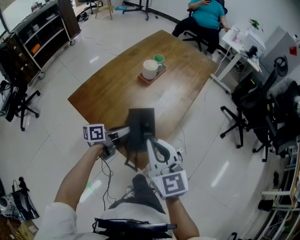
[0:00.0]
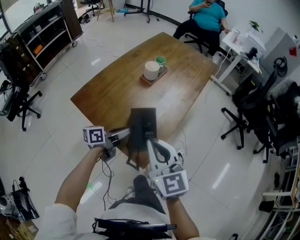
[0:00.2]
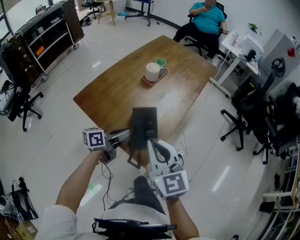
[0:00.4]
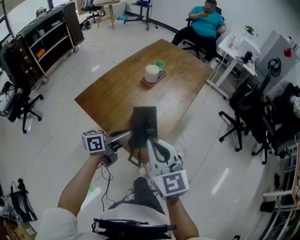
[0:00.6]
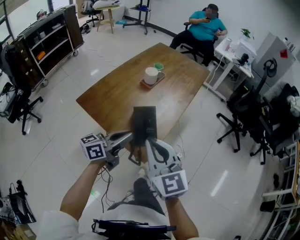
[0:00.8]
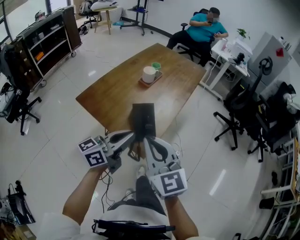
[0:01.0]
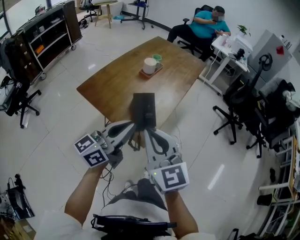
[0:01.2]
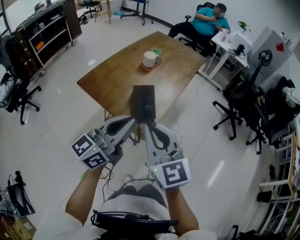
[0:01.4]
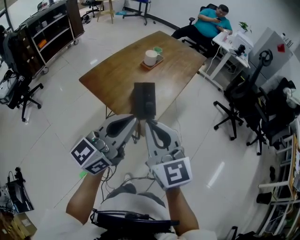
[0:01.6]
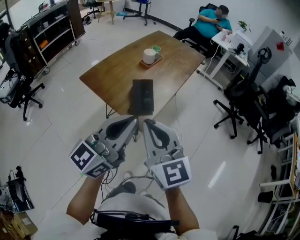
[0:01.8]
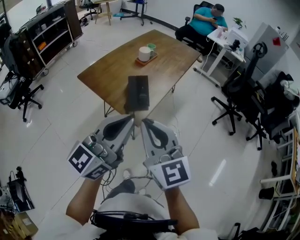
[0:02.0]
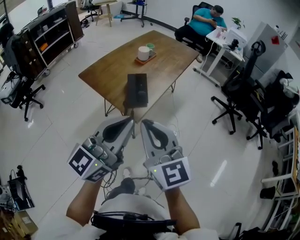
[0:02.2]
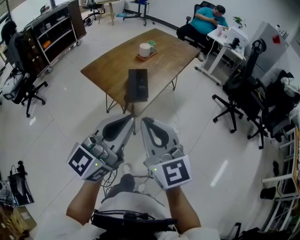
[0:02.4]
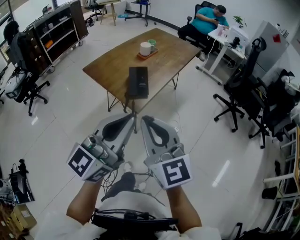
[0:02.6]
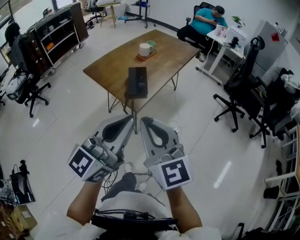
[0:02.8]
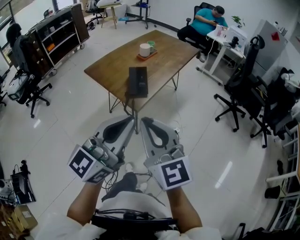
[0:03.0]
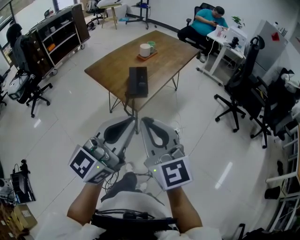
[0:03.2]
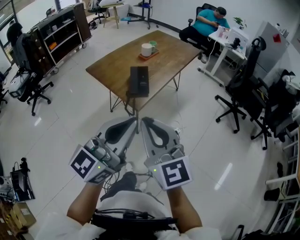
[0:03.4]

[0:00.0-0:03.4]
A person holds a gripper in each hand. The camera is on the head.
0:00.0 to 0:01.6: The left gripper is displaced upward and backward by approximately 40 cm, rotates around the line of its fingers by about 40 degrees, clockwise from behind, and closes up. The right gripper is displaced backward and upward by approximately 20 cm.
0:01.6 to 0:03.4: The two grippers go some 20 cm backward and to the right.

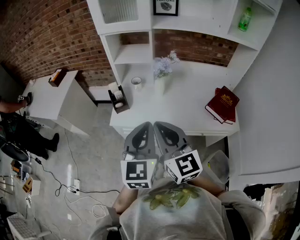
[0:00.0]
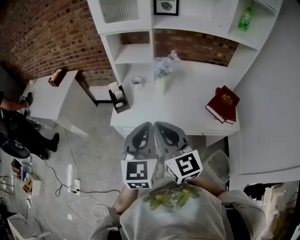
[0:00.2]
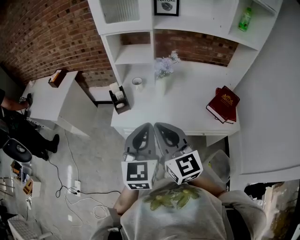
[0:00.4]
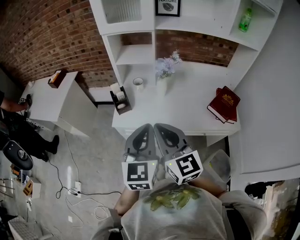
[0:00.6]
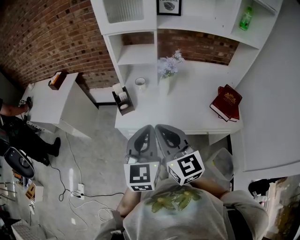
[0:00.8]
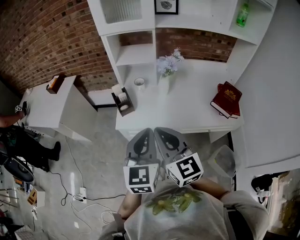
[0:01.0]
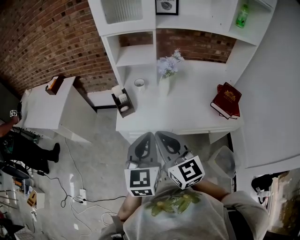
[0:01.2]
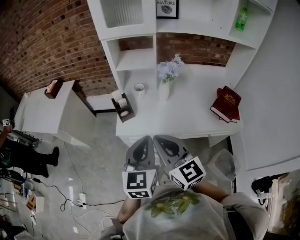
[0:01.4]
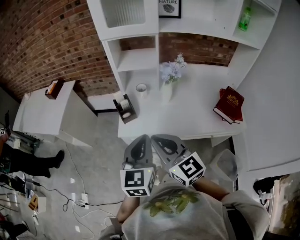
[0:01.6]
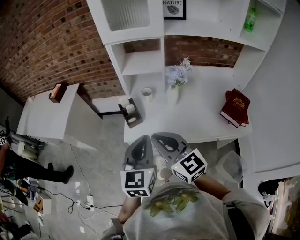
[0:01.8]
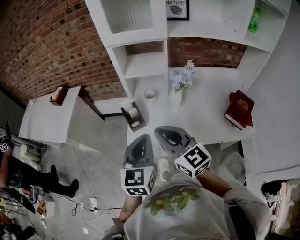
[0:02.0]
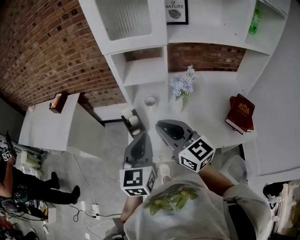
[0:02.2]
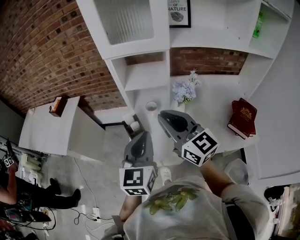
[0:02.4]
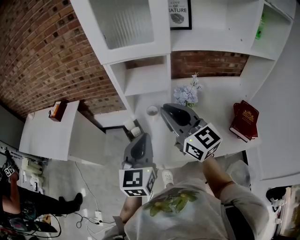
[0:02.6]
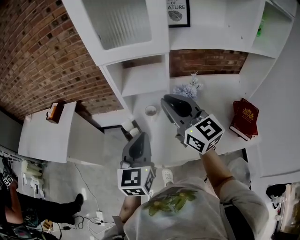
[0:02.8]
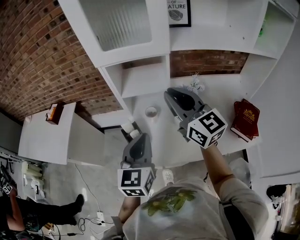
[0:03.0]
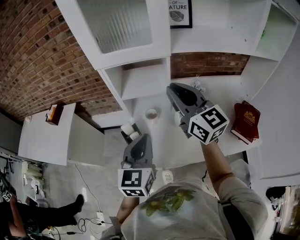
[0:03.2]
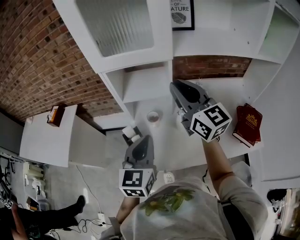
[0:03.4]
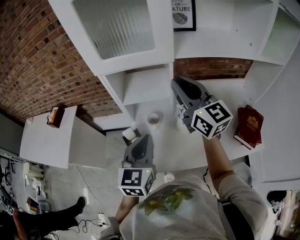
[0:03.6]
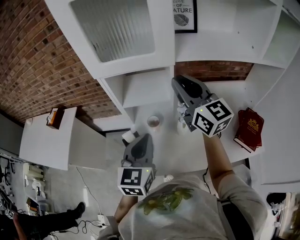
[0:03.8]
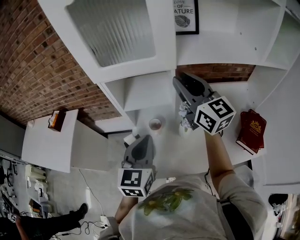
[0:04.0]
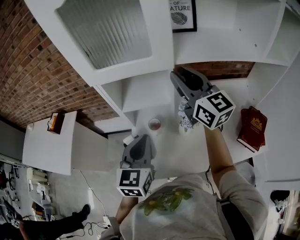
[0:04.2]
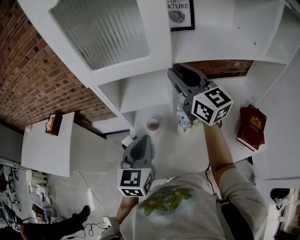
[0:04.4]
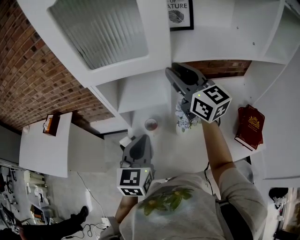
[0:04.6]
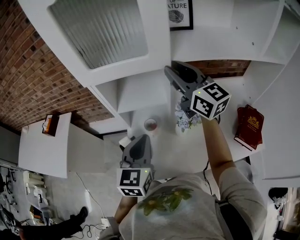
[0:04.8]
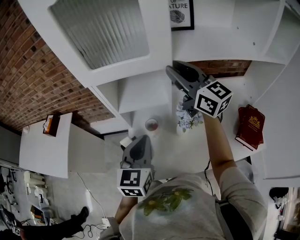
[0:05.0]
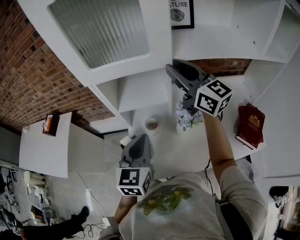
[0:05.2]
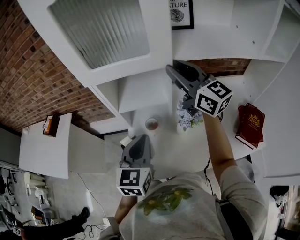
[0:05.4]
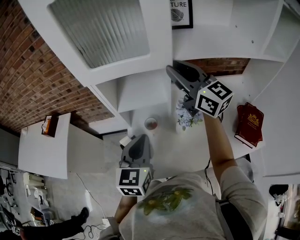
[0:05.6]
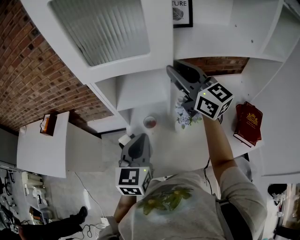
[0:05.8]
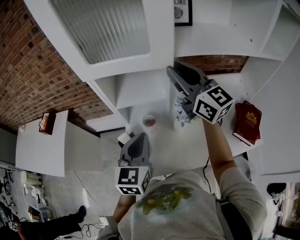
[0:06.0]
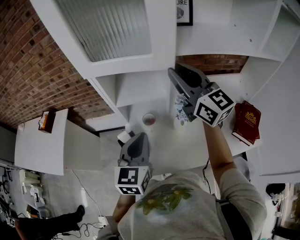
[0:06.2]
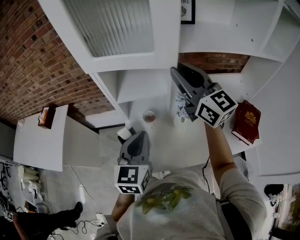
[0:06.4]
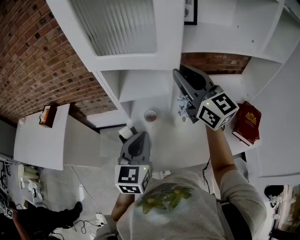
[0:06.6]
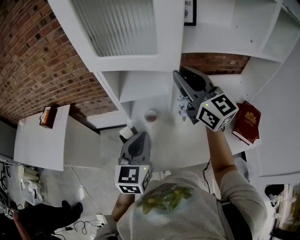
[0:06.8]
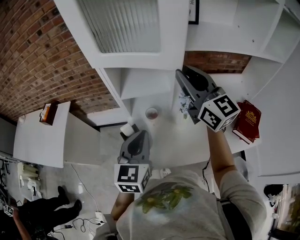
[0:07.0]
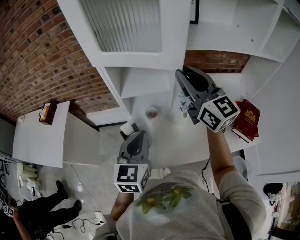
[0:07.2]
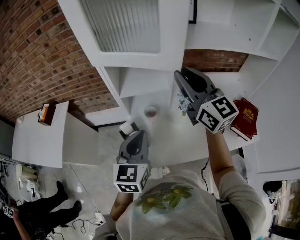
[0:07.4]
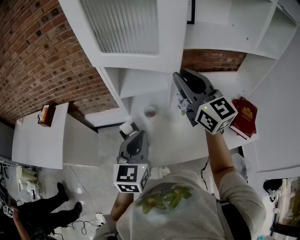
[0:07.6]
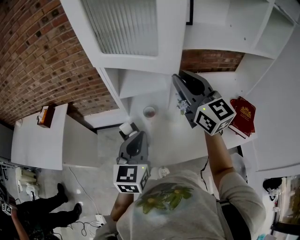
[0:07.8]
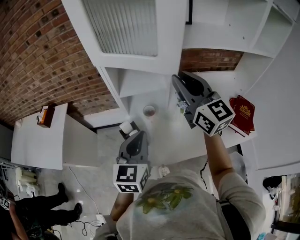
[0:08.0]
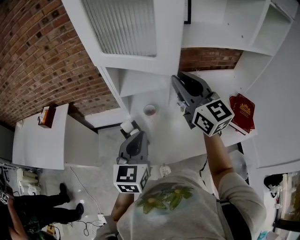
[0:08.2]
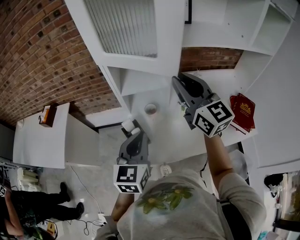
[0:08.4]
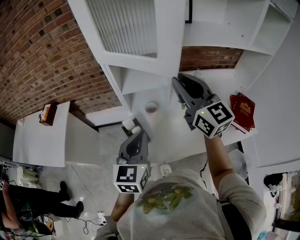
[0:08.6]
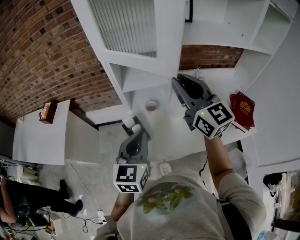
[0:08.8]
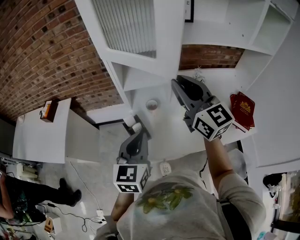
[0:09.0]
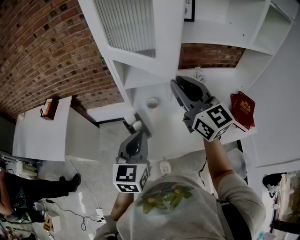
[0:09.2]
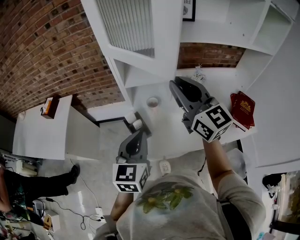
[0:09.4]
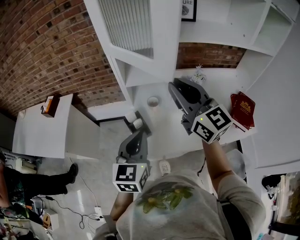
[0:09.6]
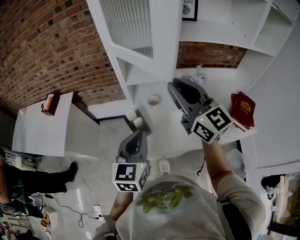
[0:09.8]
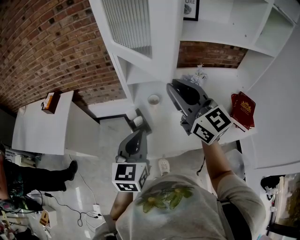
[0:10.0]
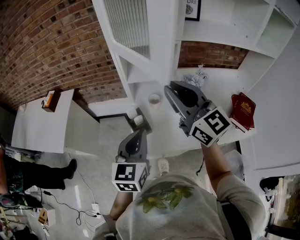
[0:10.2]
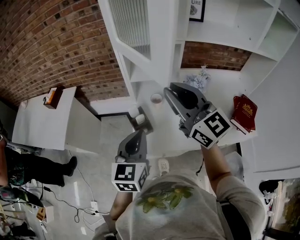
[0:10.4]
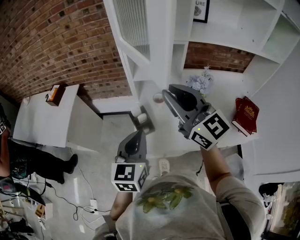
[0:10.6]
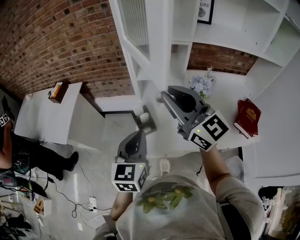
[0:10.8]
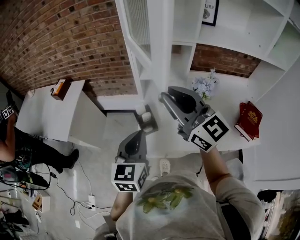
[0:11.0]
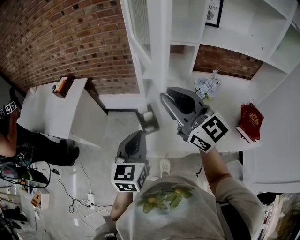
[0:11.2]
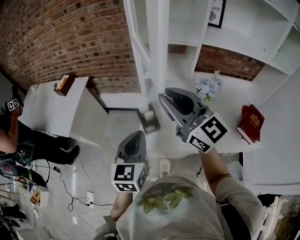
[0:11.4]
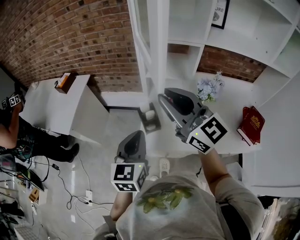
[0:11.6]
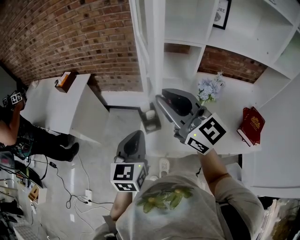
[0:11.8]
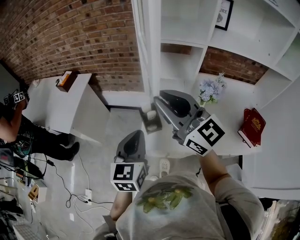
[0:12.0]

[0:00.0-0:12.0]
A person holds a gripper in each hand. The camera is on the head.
0:00.0 to 0:01.6: The two grippers go some 10 cm to the left and downward.
0:01.6 to 0:03.0: Both grippers travel together forward, roughly 25 cm.
0:03.0 to 0:04.4: The right gripper goes about 15 cm forward and to the right; the left gripper heads forward, covering roughly 10 cm.
0:04.4 to 0:06.0: There are only small adjustments of the grippers.
0:06.0 to 0:07.6: The right gripper is displaced backward by about 5 cm; the left gripper changes place by roughly 5 cm.
0:07.6 to 0:09.0: The right gripper is displaced backward by some 5 cm. Meanwhile the left gripper moves approximately 5 cm.
0:09.0 to 0:10.4: The right gripper is displaced to the left and backward by roughly 10 cm.
0:10.4 to 0:12.0: The right gripper heads to the left, covering approximately 10 cm; the left gripper moves to the left, about 5 cm.

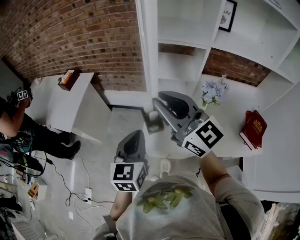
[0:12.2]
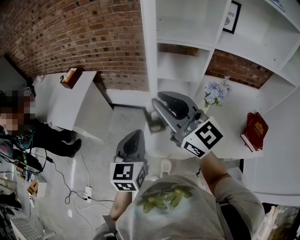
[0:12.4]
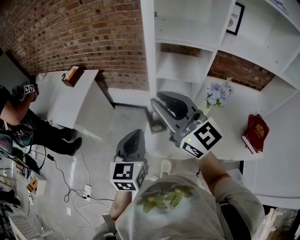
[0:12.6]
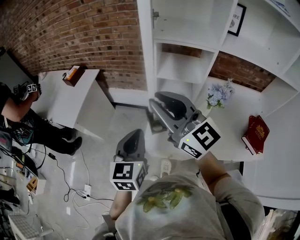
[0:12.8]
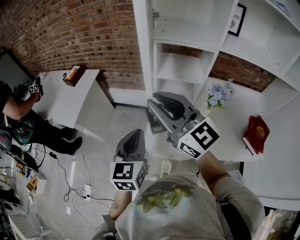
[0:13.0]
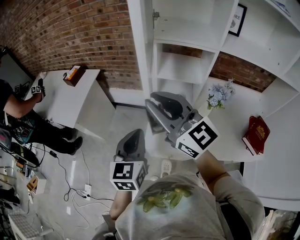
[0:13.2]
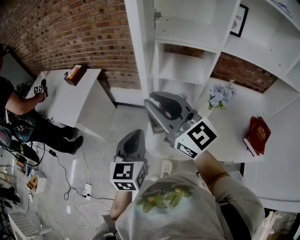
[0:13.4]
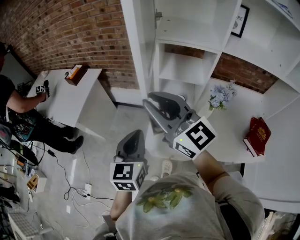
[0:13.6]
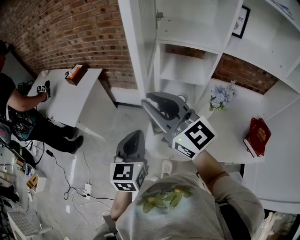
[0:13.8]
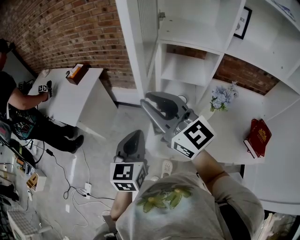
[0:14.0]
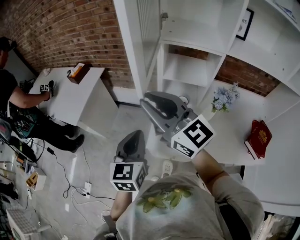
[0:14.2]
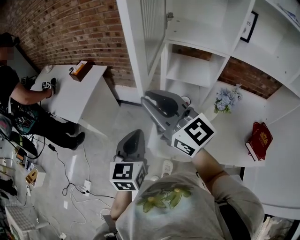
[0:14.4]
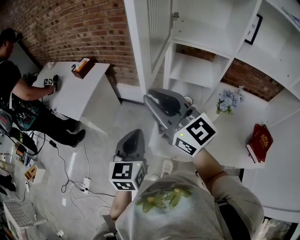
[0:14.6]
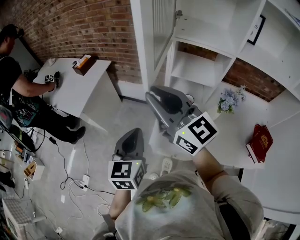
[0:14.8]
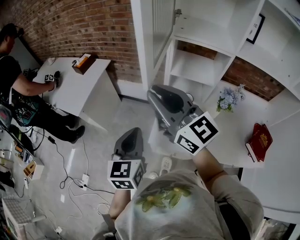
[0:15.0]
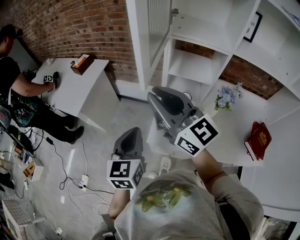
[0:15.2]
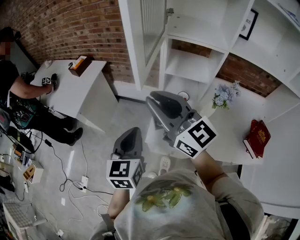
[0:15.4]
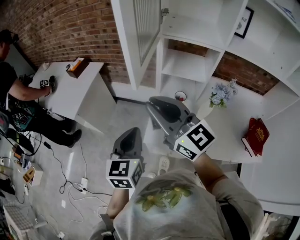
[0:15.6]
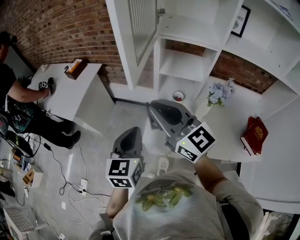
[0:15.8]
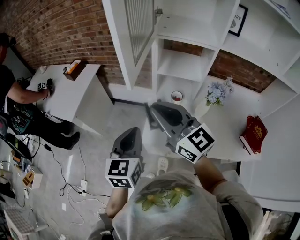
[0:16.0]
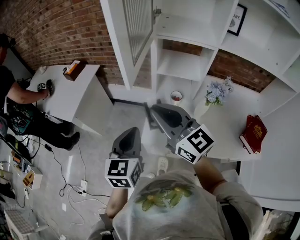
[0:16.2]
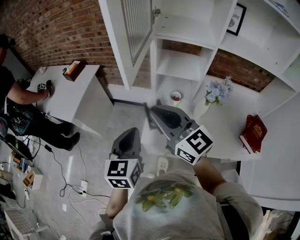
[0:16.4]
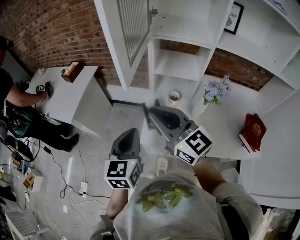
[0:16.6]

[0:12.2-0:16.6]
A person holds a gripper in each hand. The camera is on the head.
0:12.2 to 0:13.6: The right gripper is displaced to the left by approximately 5 cm.
0:13.6 to 0:15.2: The grippers move only a little.
0:15.2 to 0:16.6: The right gripper is displaced downward by roughly 5 cm.

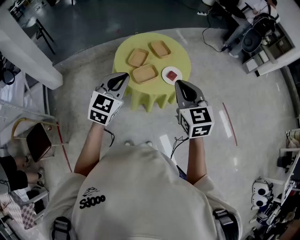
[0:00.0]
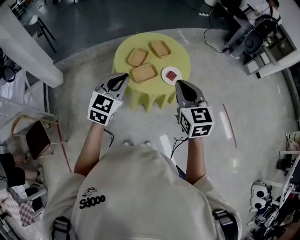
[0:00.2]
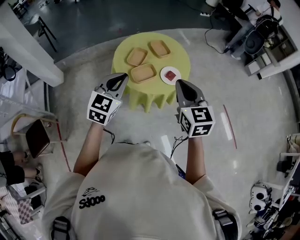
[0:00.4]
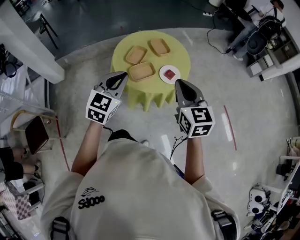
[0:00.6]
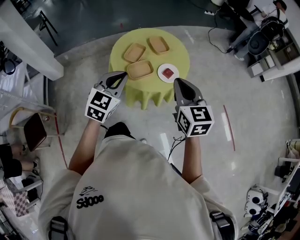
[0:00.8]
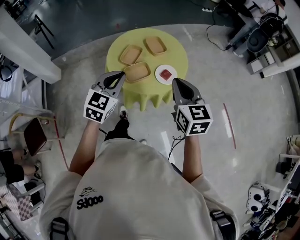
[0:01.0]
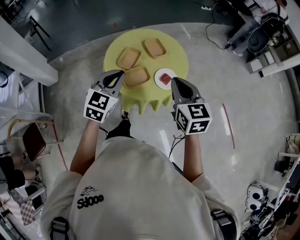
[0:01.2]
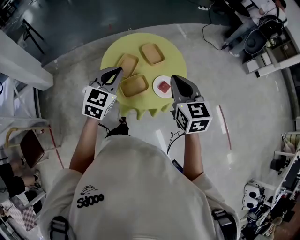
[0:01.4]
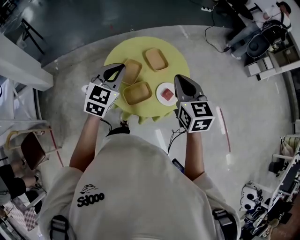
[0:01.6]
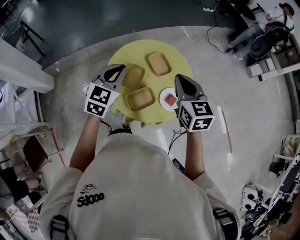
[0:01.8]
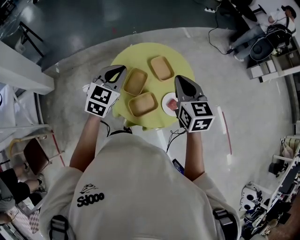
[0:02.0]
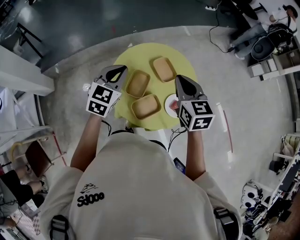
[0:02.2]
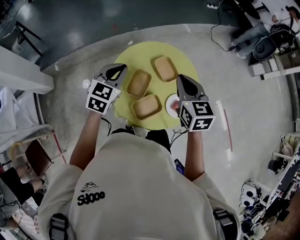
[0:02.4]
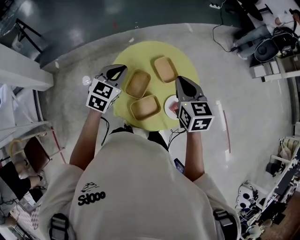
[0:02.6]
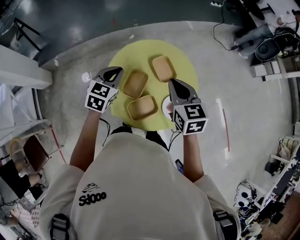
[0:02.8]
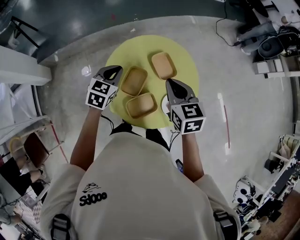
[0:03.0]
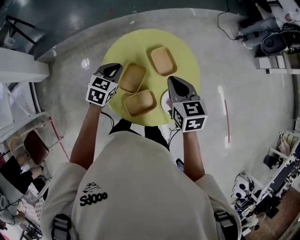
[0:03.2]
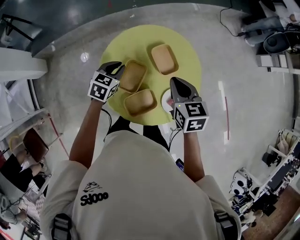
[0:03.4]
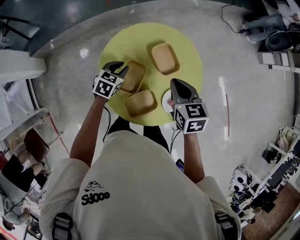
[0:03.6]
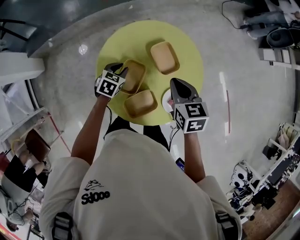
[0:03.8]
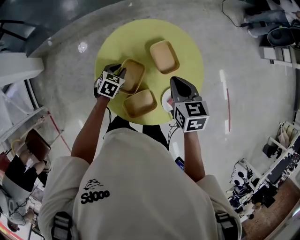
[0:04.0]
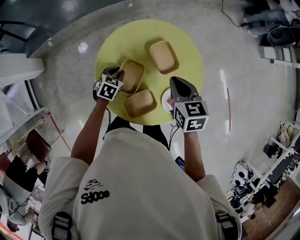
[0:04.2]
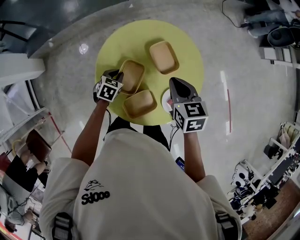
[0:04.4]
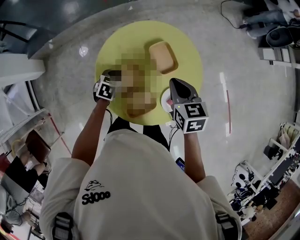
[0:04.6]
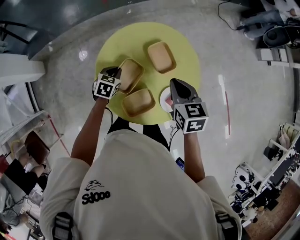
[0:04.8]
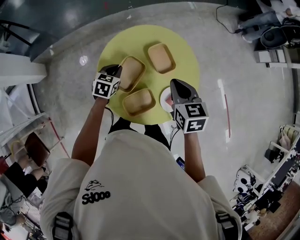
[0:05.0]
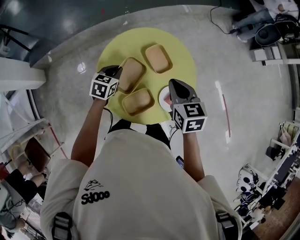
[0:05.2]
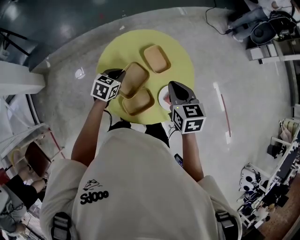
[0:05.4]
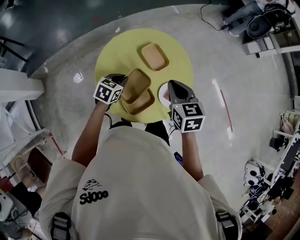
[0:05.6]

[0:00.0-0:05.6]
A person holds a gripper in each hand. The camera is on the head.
0:00.0 to 0:01.4: Both grippers move forward, some 15 cm.
0:01.4 to 0:02.8: The left gripper moves forward, downward and to the left, roughly 20 cm, while the right gripper travels forward, to the left and downward by about 20 cm.
0:02.8 to 0:04.2: The left gripper goes some 20 cm downward, and changes its angle by some 30 degrees, while the right gripper travels downward by roughly 10 cm.
0:04.2 to 0:05.6: The left gripper goes approximately 10 cm upward. Meanwhile the right gripper shifts some 10 cm backward.
